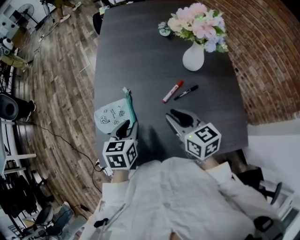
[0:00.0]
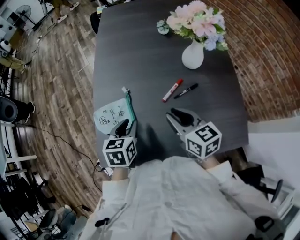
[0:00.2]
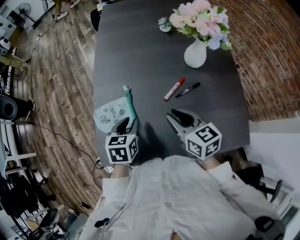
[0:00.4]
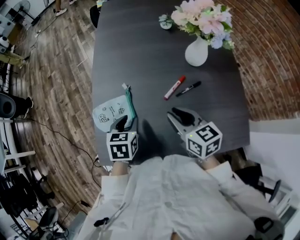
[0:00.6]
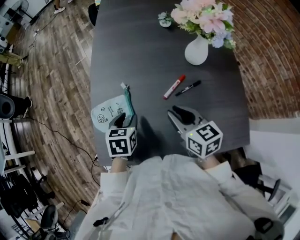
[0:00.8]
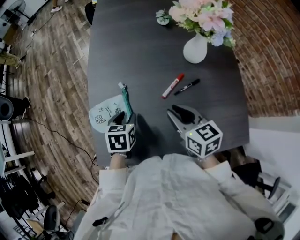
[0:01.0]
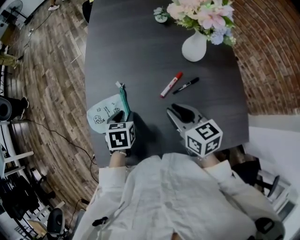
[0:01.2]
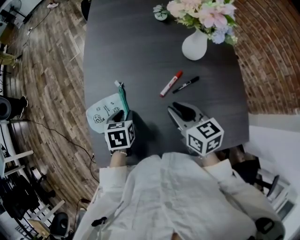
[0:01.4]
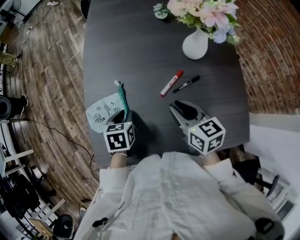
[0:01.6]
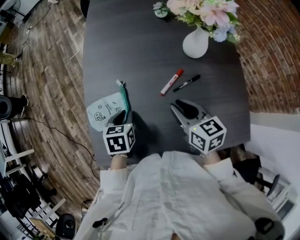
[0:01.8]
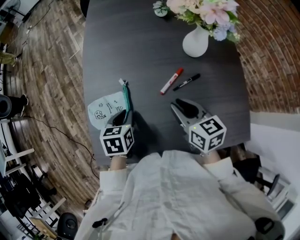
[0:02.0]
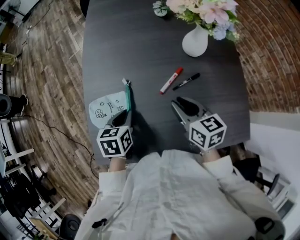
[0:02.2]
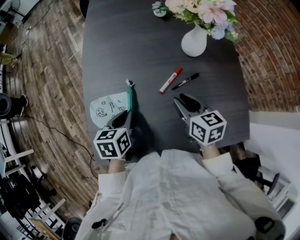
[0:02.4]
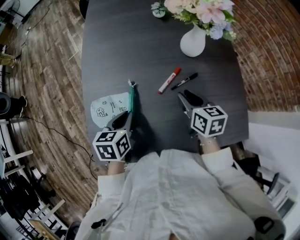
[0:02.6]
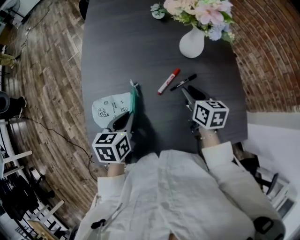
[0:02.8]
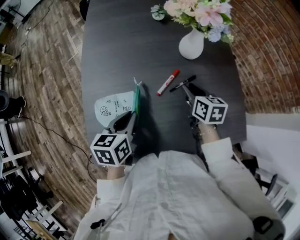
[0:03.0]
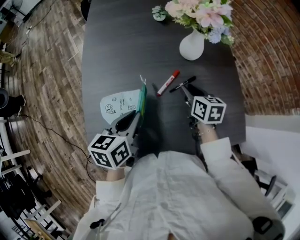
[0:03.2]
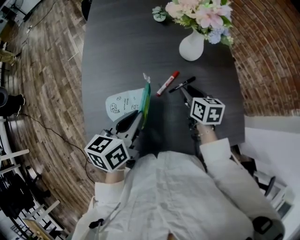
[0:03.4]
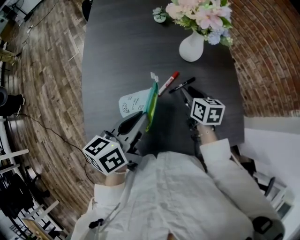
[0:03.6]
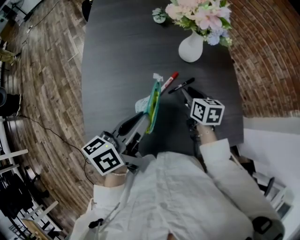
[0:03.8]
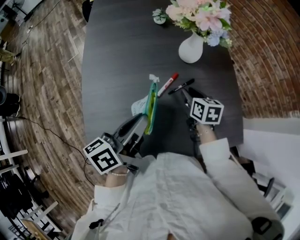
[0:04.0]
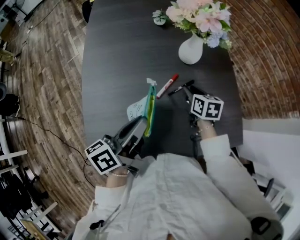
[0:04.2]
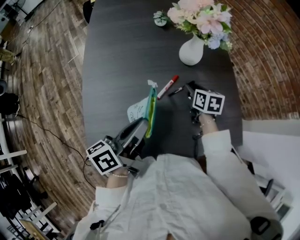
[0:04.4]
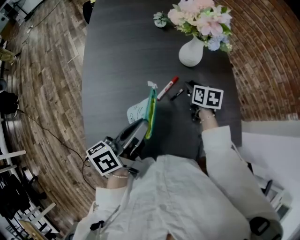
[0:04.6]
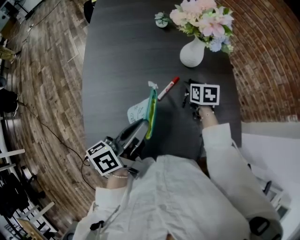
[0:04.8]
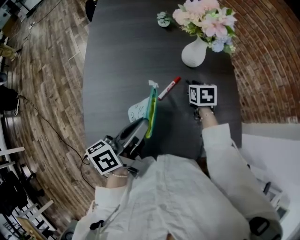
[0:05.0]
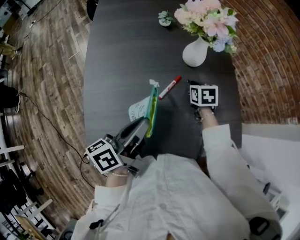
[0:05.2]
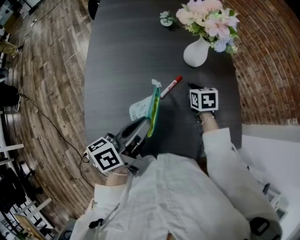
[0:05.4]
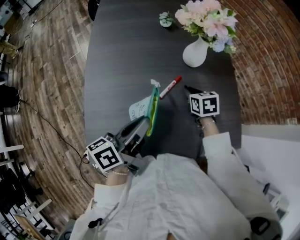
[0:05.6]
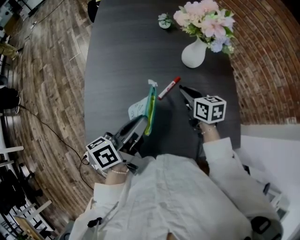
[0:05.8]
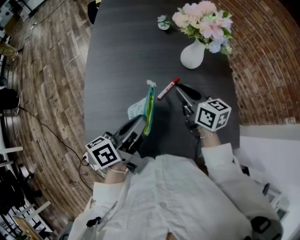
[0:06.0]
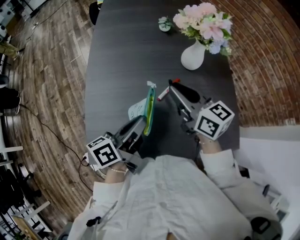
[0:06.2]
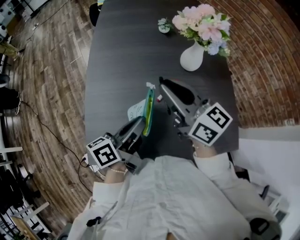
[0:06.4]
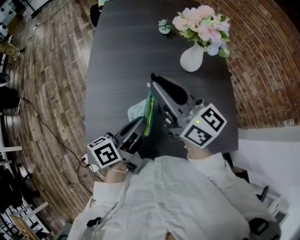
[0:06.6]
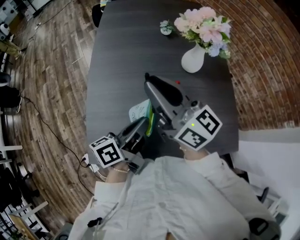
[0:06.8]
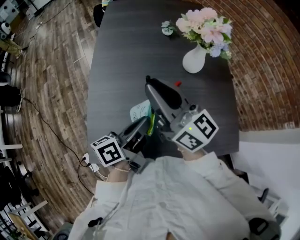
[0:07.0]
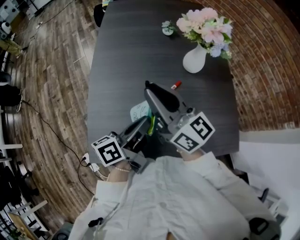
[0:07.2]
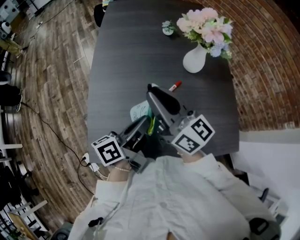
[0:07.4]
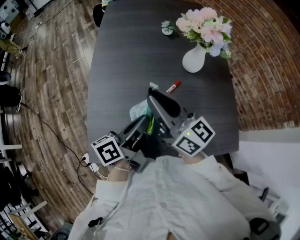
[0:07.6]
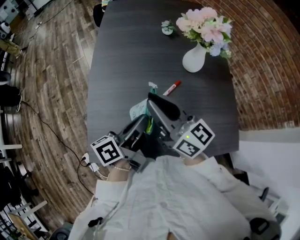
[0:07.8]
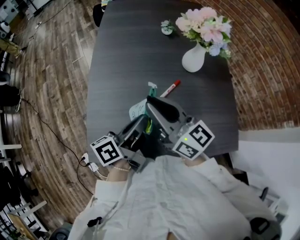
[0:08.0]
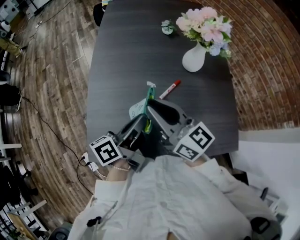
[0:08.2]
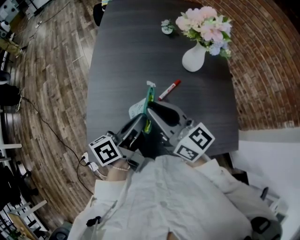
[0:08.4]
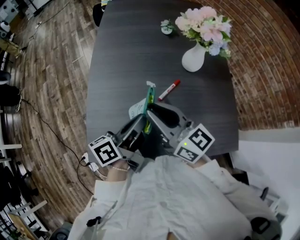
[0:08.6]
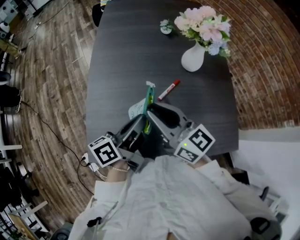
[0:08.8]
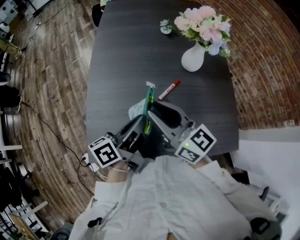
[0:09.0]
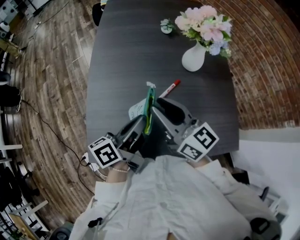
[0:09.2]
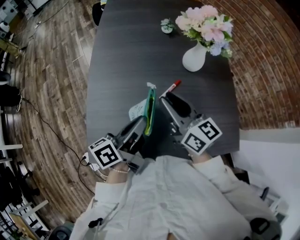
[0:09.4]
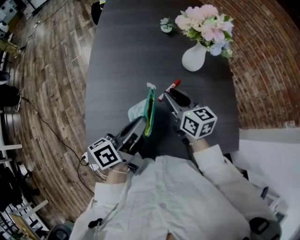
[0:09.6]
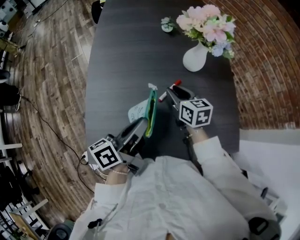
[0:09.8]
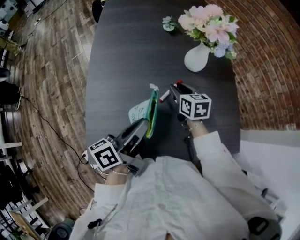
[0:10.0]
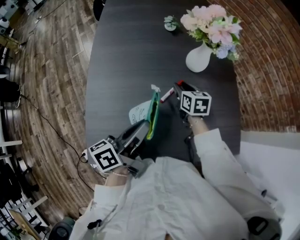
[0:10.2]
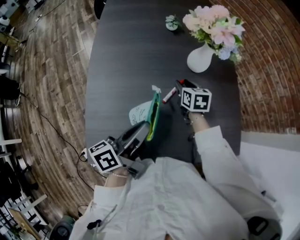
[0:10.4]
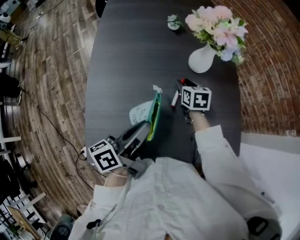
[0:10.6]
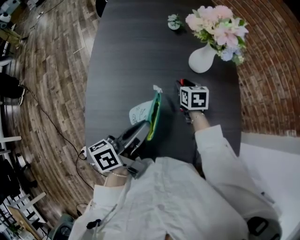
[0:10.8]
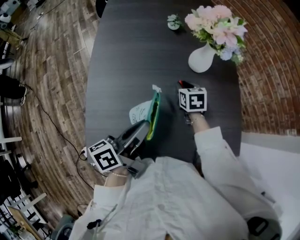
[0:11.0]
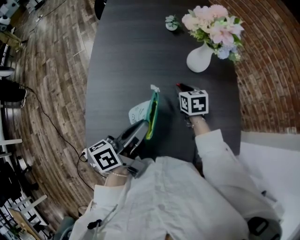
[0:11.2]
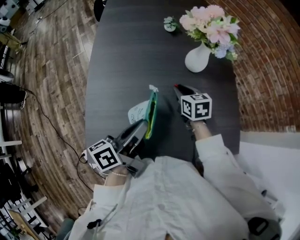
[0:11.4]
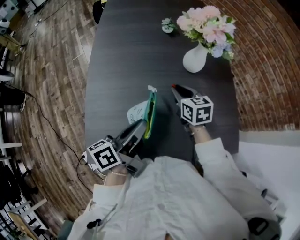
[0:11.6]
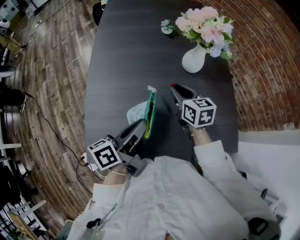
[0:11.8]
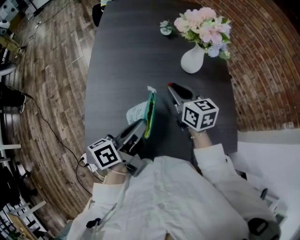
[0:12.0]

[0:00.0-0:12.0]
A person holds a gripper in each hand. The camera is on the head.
0:00.0 to 0:01.6: The left gripper travels downward by approximately 10 cm; the right gripper shifts by about 5 cm.
0:01.6 to 0:03.0: The right gripper shifts about 10 cm to the right and forward, and rotates approximately 20 degrees; the left gripper travels upward and to the right by roughly 10 cm, and rotates roughly 20 degrees.
0:03.0 to 0:04.4: The left gripper heads upward, covering roughly 10 cm, and tilts its fingers some 40 degrees upward, while the right gripper ends up some 5 cm from where it was.
0:04.4 to 0:06.0: The right gripper moves upward, to the left and backward, some 15 cm, and changes its angle by about 30 degrees.
0:06.0 to 0:07.6: The right gripper goes approximately 15 cm upward, to the left and backward, and changes its angle by approximately 30 degrees.
0:07.6 to 0:09.0: There are only small adjustments of the grippers.
0:09.0 to 0:10.4: The right gripper is displaced downward, forward and to the right by approximately 30 cm, and points its fingers about 40 degrees further downward.
0:10.4 to 0:12.0: The right gripper heads upward and backward, covering roughly 15 cm, and swivels about 20 degrees.

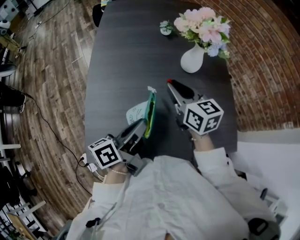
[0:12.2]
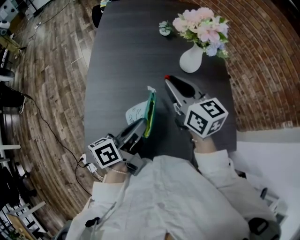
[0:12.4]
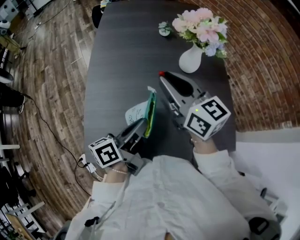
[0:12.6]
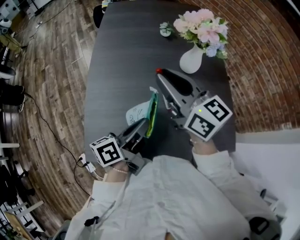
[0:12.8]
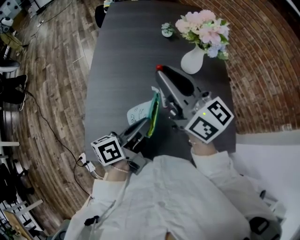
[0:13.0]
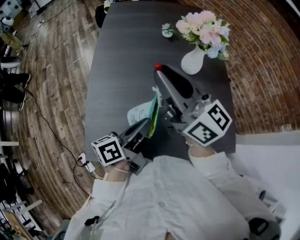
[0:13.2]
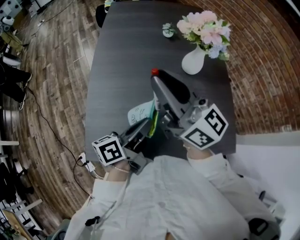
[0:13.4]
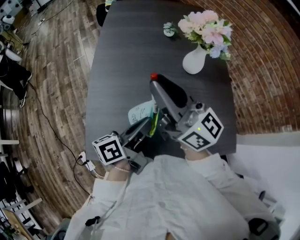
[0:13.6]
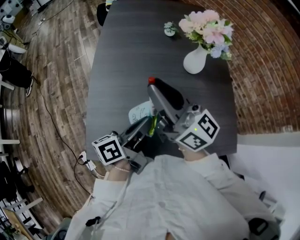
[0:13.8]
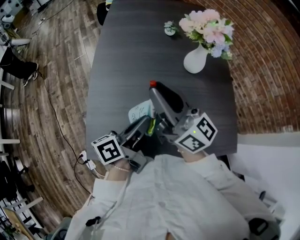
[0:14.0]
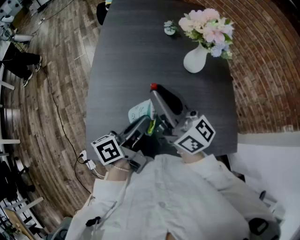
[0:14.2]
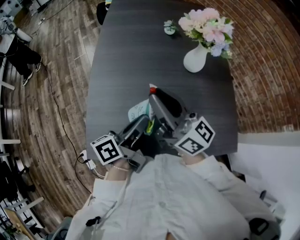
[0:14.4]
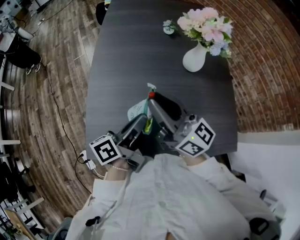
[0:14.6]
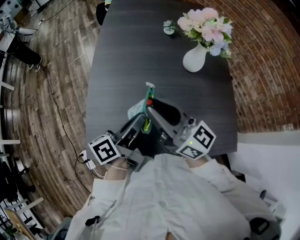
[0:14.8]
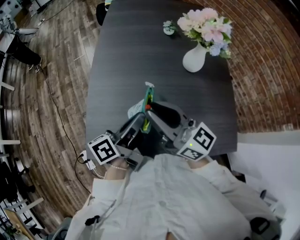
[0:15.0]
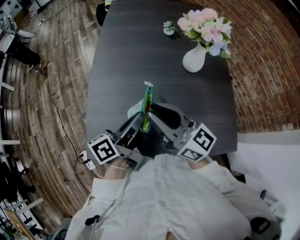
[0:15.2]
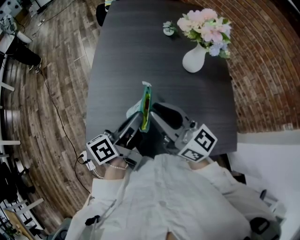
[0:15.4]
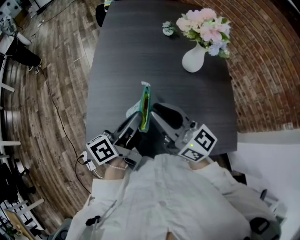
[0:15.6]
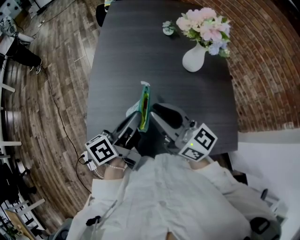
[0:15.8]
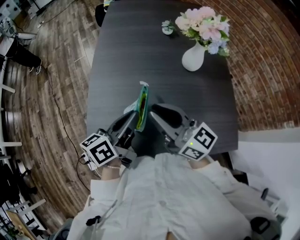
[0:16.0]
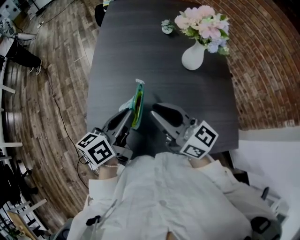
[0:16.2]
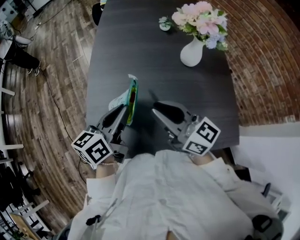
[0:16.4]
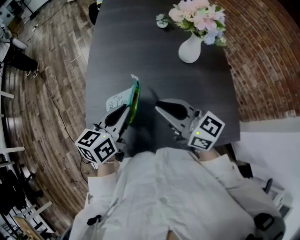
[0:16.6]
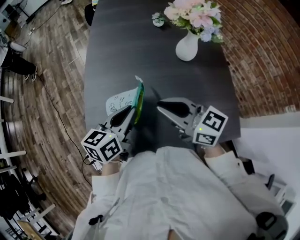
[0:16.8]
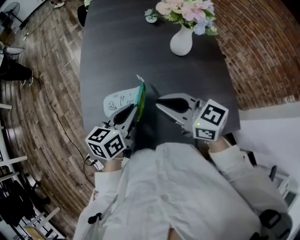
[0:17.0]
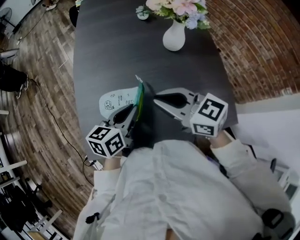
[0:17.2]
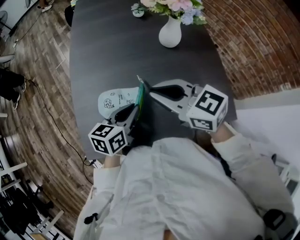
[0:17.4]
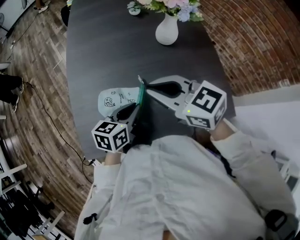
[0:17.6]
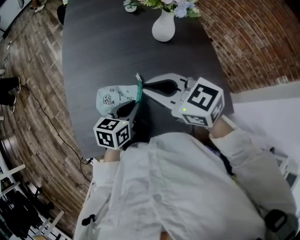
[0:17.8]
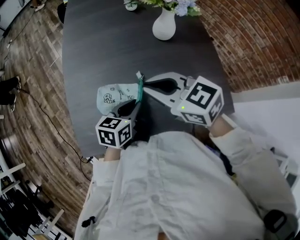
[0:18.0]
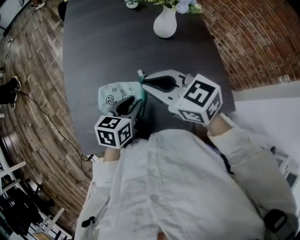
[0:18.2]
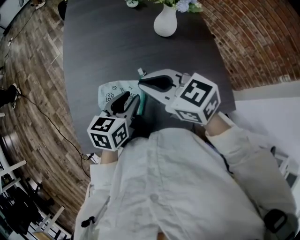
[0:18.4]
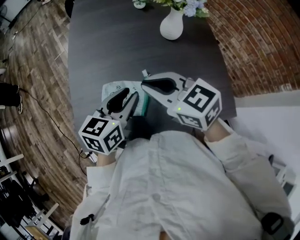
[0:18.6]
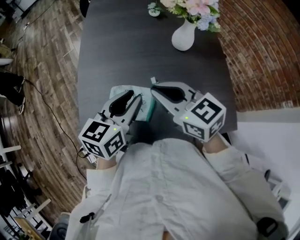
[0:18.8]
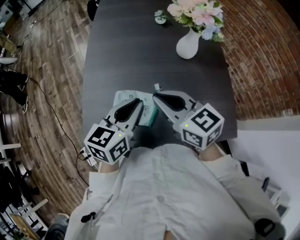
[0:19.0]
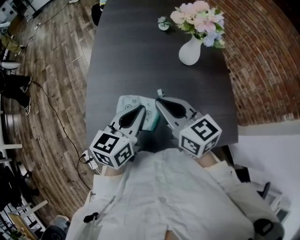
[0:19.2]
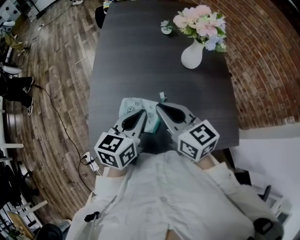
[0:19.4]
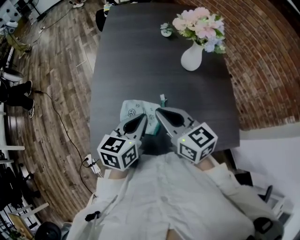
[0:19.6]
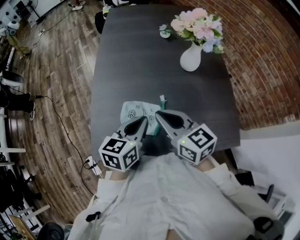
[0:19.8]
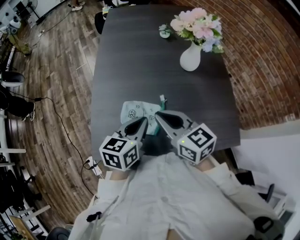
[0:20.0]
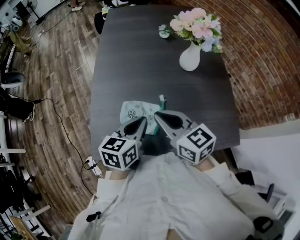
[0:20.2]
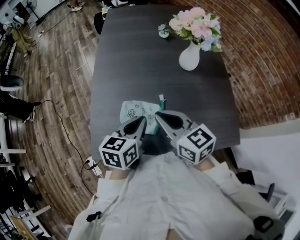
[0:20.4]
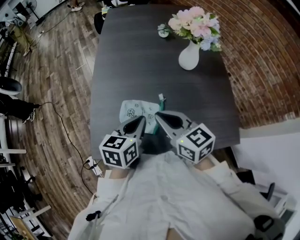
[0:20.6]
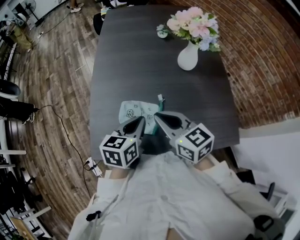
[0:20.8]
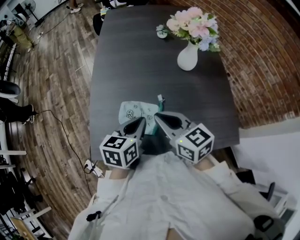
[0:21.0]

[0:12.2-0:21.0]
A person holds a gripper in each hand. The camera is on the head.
0:12.2 to 0:13.6: The right gripper moves upward, to the left and backward, roughly 20 cm, and angles its fingers upward, by about 40 degrees.
0:13.6 to 0:15.2: The right gripper shifts some 10 cm downward and backward.
0:15.2 to 0:16.6: The left gripper swivels approximately 40 degrees.
0:16.6 to 0:18.0: The left gripper is displaced downward and to the right by roughly 15 cm, and turns by approximately 20 degrees; the right gripper swivels about 30 degrees.
0:18.0 to 0:19.6: The left gripper moves upward and to the left, roughly 10 cm, and opens and closes again.
0:19.6 to 0:21.0: The grippers make only small movements.

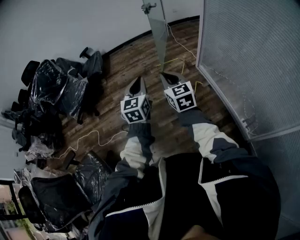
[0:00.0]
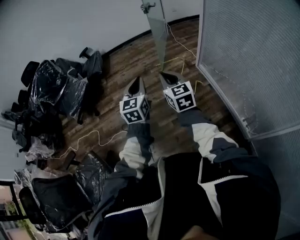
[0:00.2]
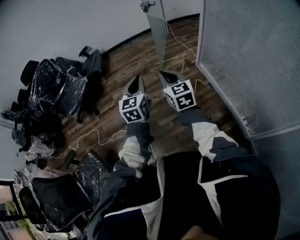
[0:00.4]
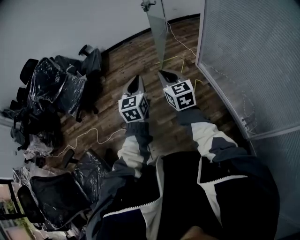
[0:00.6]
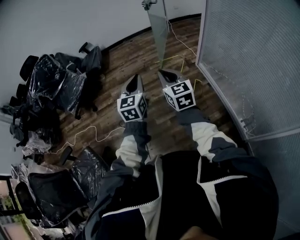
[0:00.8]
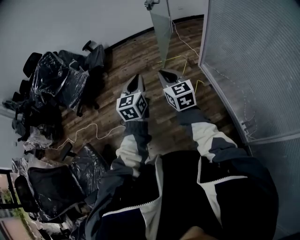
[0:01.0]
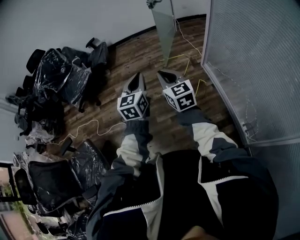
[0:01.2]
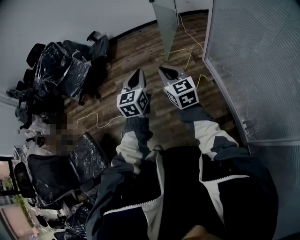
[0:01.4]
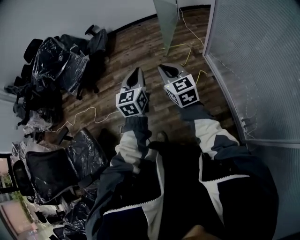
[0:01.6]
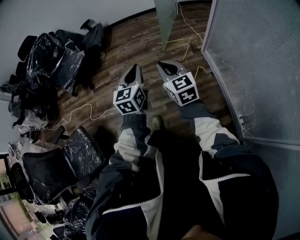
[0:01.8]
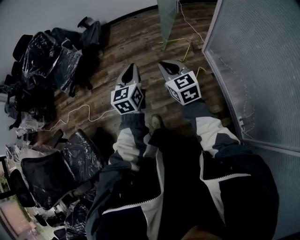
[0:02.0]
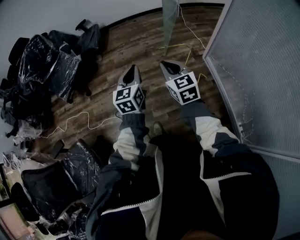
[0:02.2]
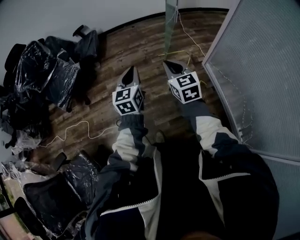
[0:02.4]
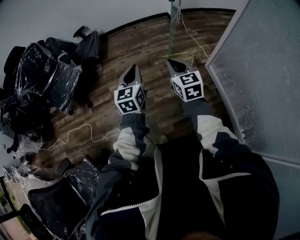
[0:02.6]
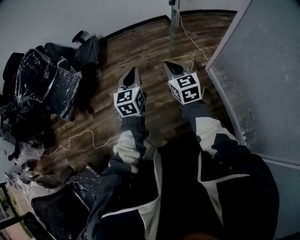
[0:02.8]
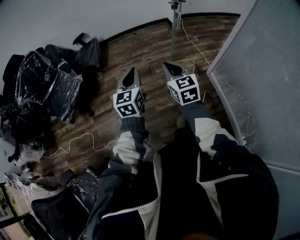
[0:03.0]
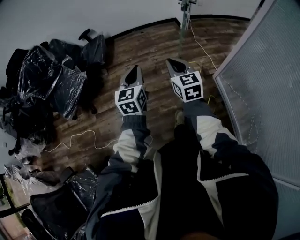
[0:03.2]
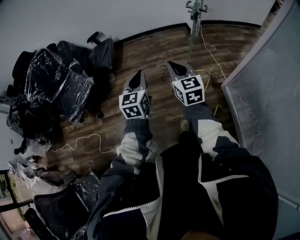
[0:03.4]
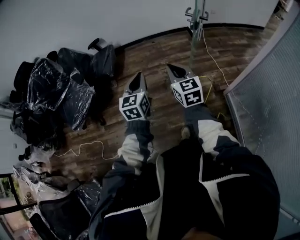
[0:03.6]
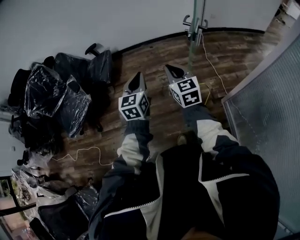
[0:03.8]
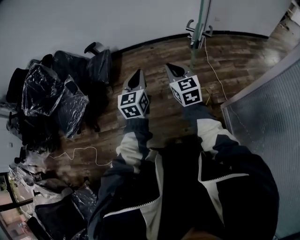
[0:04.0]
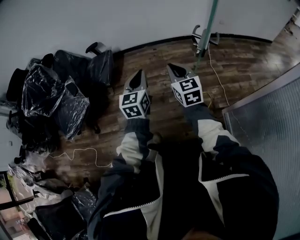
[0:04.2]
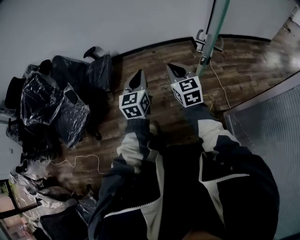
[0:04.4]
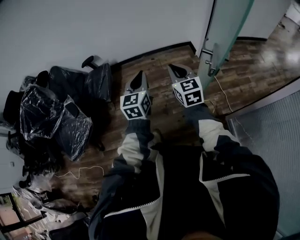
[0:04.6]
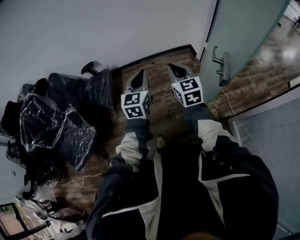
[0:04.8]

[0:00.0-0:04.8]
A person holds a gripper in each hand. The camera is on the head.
0:00.0 to 0:01.6: The left gripper moves about 5 cm.
0:01.6 to 0:03.2: Both grippers are carried forward, about 40 cm.
0:03.2 to 0:04.8: The two grippers travel together, forward, roughly 50 cm.
